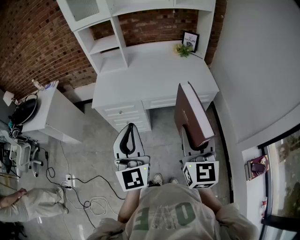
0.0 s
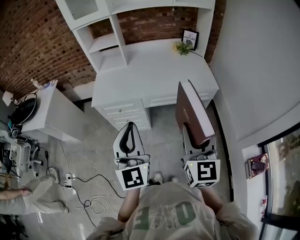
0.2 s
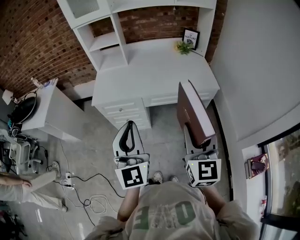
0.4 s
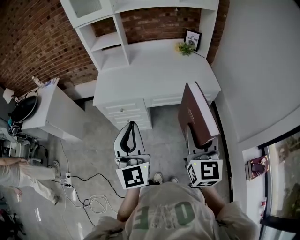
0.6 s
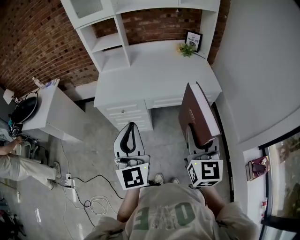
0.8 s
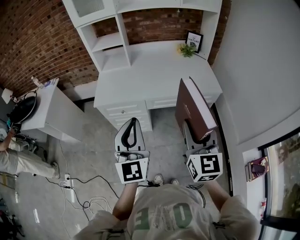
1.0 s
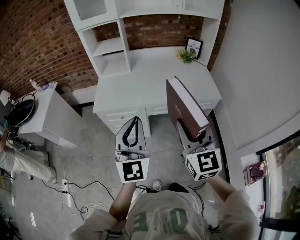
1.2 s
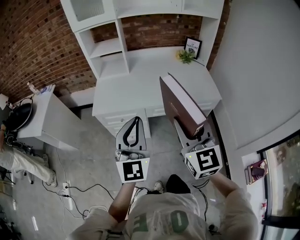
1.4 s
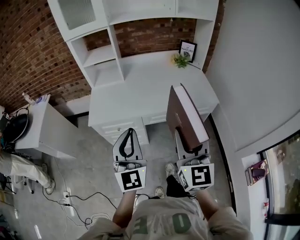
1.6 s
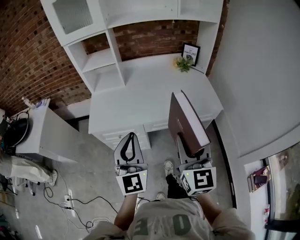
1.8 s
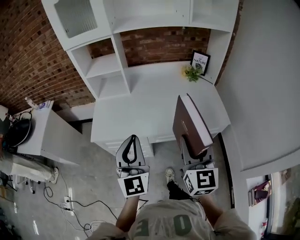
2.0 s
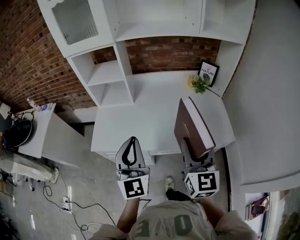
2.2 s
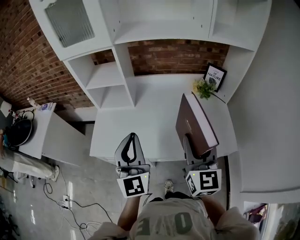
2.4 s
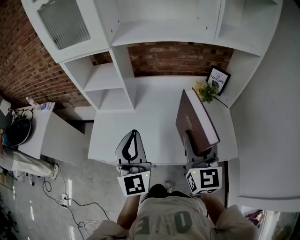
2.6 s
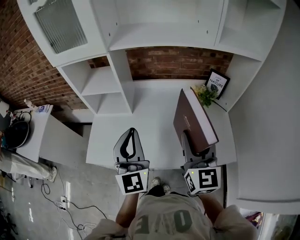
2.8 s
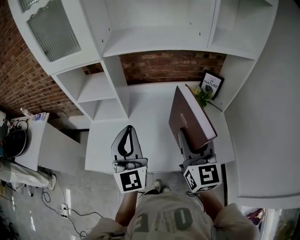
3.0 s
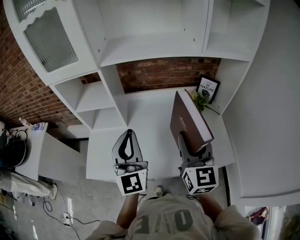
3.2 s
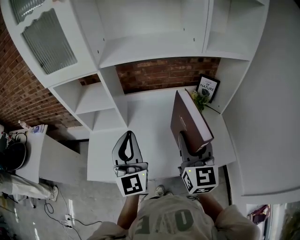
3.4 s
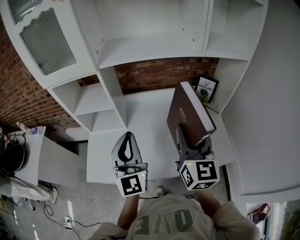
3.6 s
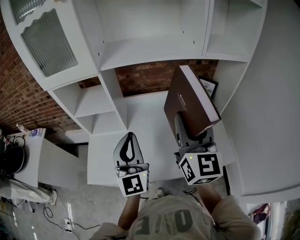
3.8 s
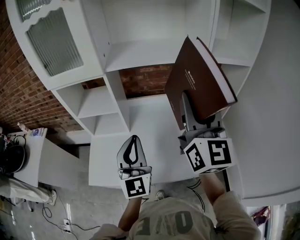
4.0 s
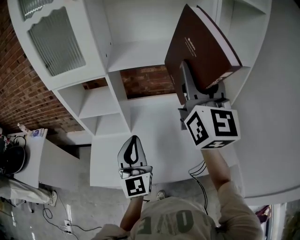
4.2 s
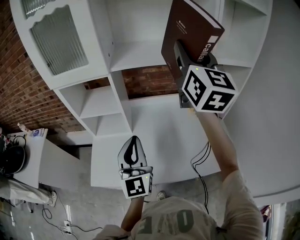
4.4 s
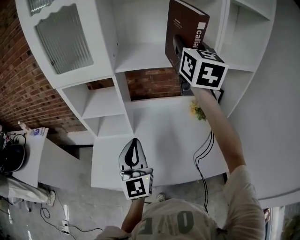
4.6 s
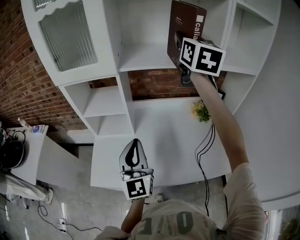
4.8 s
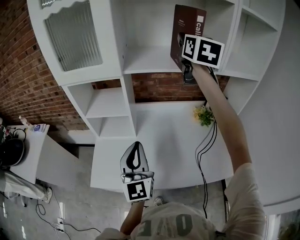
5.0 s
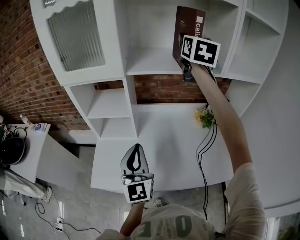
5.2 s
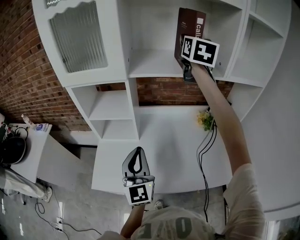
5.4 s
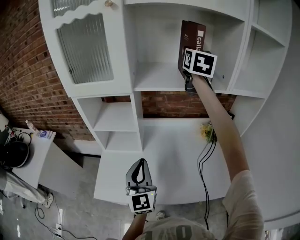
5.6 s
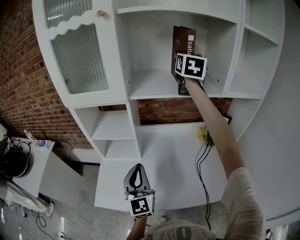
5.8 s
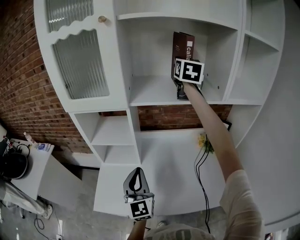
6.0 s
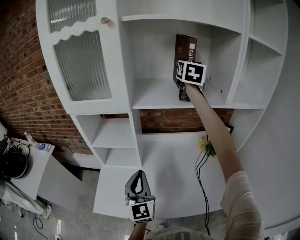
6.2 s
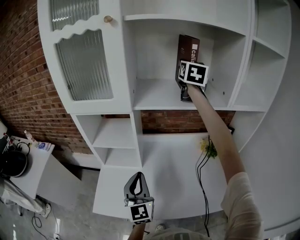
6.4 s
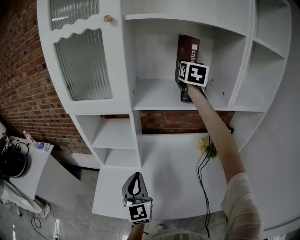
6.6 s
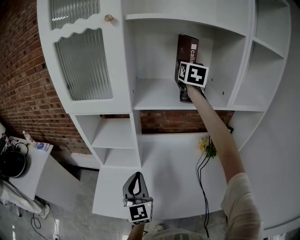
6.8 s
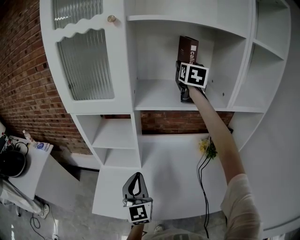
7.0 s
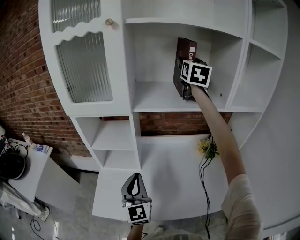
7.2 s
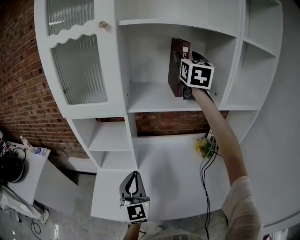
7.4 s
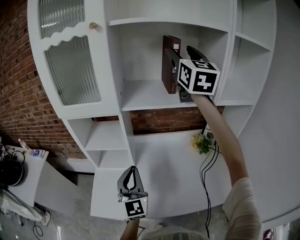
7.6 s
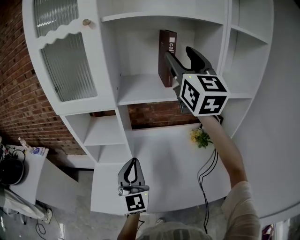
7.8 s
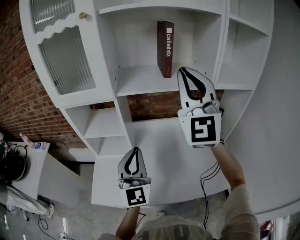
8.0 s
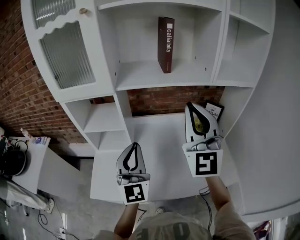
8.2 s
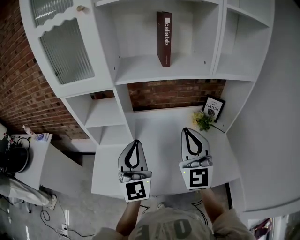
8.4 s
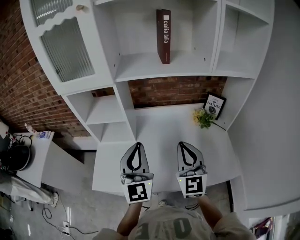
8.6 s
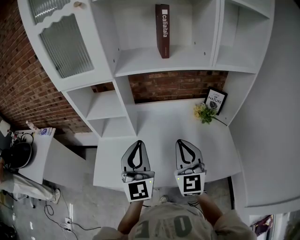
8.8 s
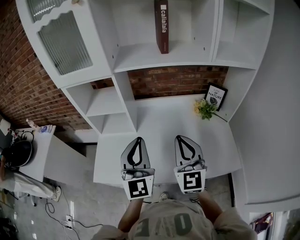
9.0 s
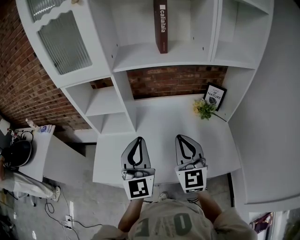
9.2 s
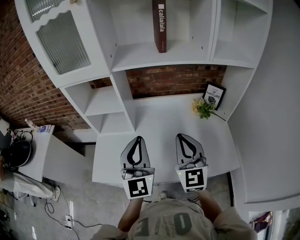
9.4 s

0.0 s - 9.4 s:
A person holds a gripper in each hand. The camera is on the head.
0.0 s - 1.6 s: The left gripper travels forward by about 10 cm; the right gripper moves forward and to the left, about 10 cm.
1.6 s - 3.2 s: The grippers both shift forward by some 35 cm.
3.2 s - 4.8 s: The left gripper moves to the left, some 5 cm. The right gripper goes some 35 cm forward and upward.
4.8 s - 6.2 s: The right gripper moves forward, some 15 cm. The left gripper changes place by approximately 5 cm.
6.2 s - 7.8 s: The right gripper shifts roughly 20 cm backward, changes its angle by approximately 30 degrees, and opens its fingers, while the left gripper travels upward by about 5 cm.
7.8 s - 9.4 s: The left gripper shifts approximately 5 cm backward. Meanwhile the right gripper moves downward and backward, approximately 40 cm, changes its angle by approximately 20 degrees, and closes.

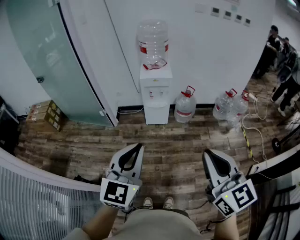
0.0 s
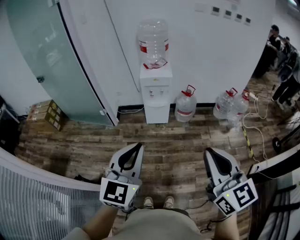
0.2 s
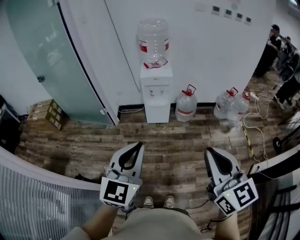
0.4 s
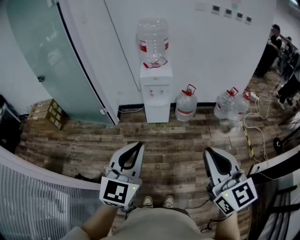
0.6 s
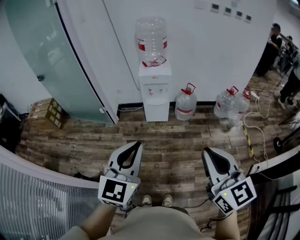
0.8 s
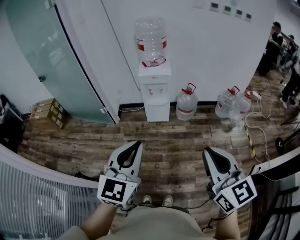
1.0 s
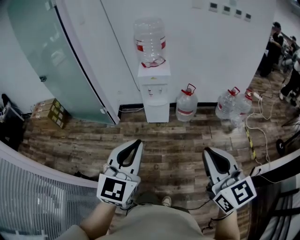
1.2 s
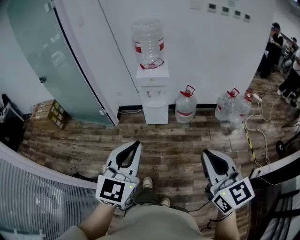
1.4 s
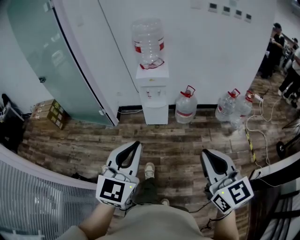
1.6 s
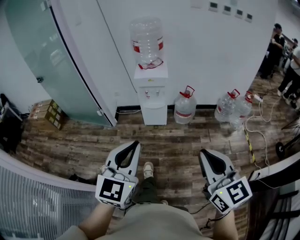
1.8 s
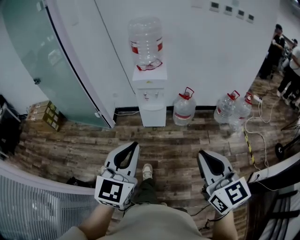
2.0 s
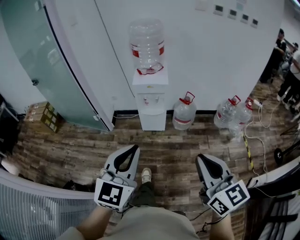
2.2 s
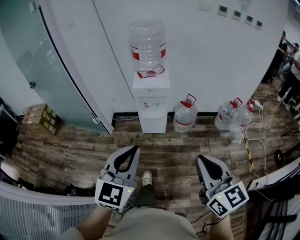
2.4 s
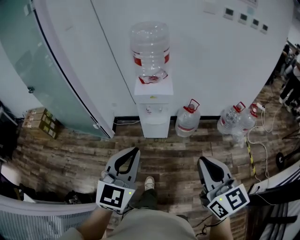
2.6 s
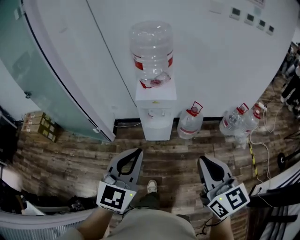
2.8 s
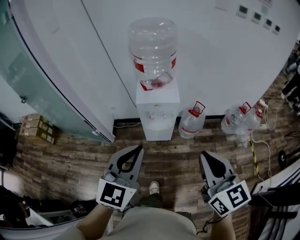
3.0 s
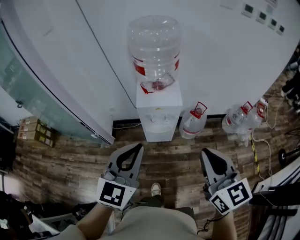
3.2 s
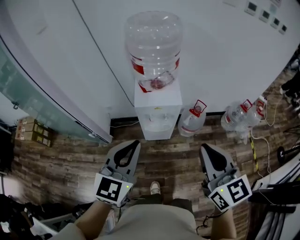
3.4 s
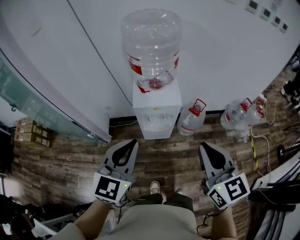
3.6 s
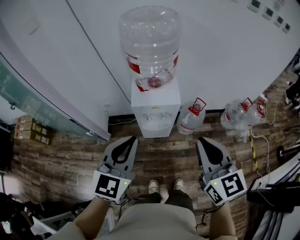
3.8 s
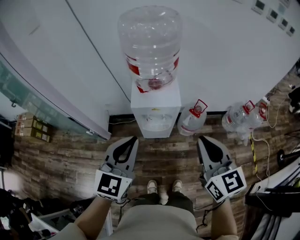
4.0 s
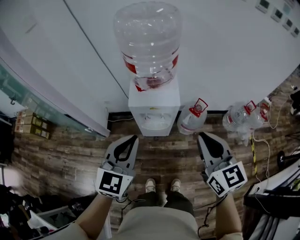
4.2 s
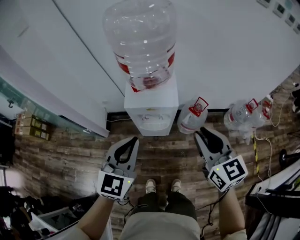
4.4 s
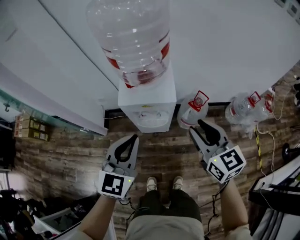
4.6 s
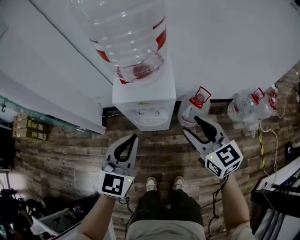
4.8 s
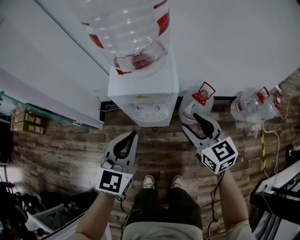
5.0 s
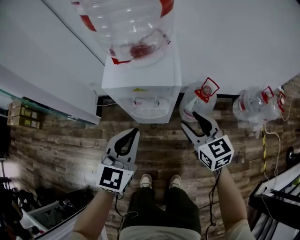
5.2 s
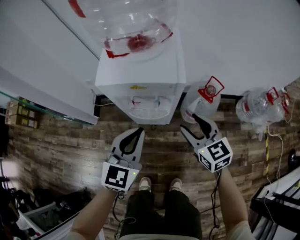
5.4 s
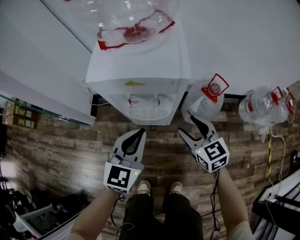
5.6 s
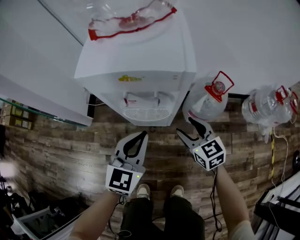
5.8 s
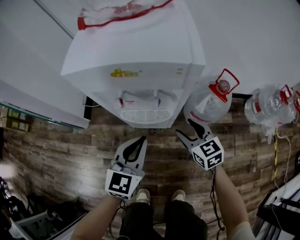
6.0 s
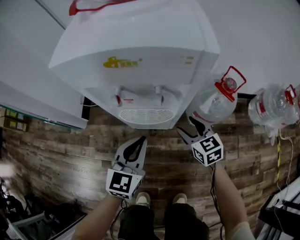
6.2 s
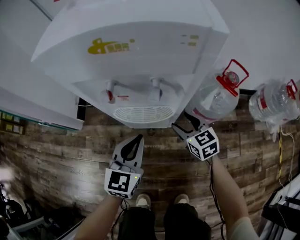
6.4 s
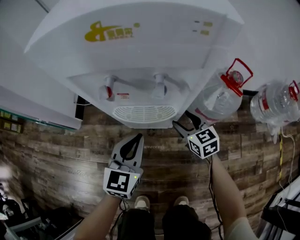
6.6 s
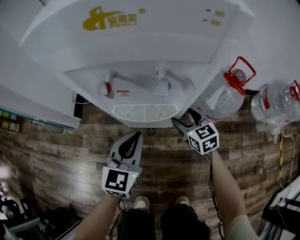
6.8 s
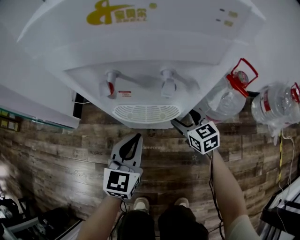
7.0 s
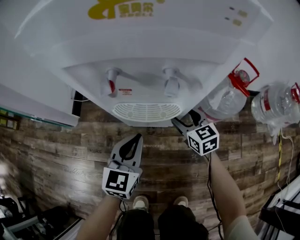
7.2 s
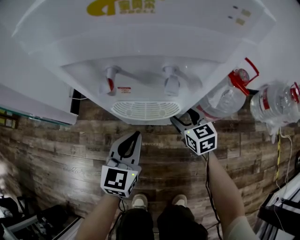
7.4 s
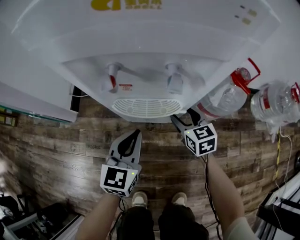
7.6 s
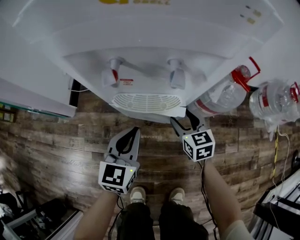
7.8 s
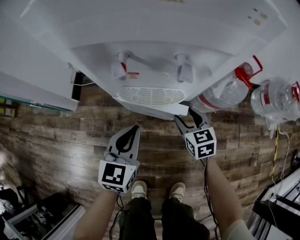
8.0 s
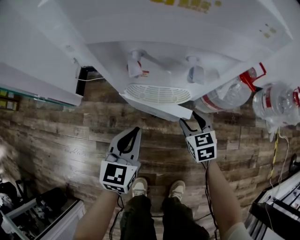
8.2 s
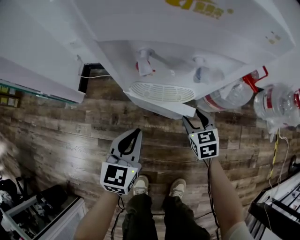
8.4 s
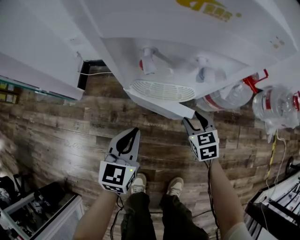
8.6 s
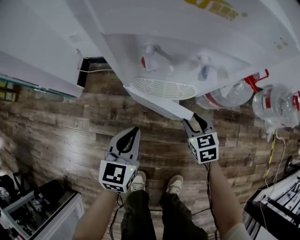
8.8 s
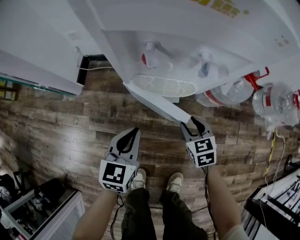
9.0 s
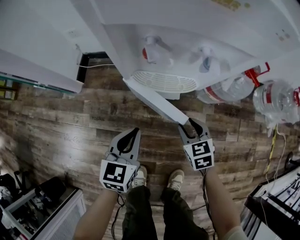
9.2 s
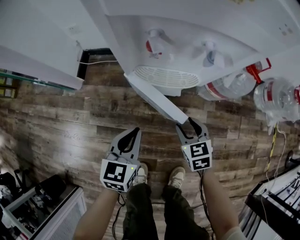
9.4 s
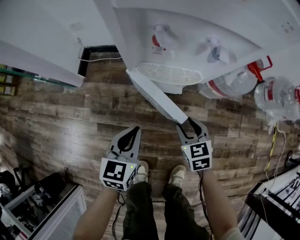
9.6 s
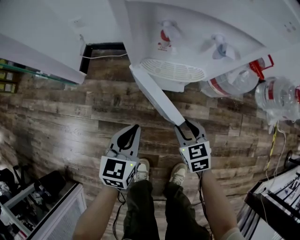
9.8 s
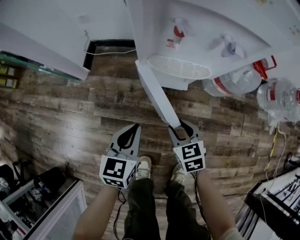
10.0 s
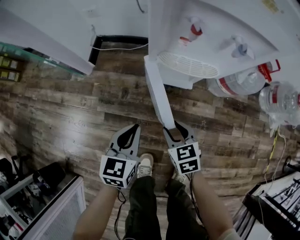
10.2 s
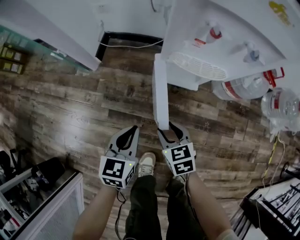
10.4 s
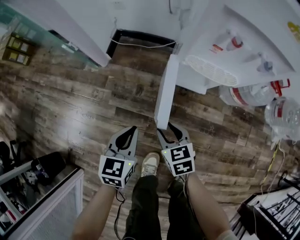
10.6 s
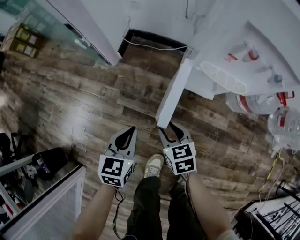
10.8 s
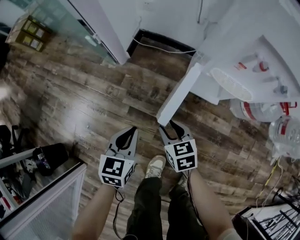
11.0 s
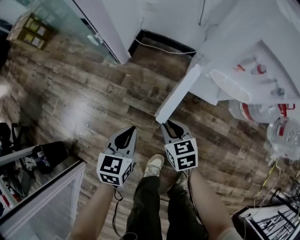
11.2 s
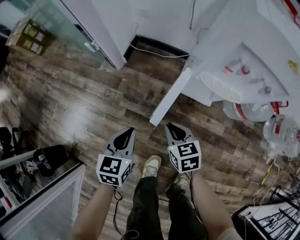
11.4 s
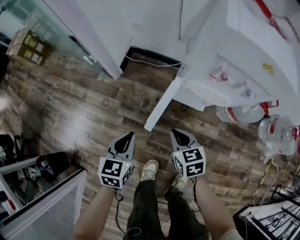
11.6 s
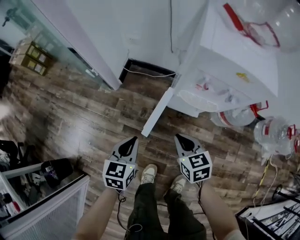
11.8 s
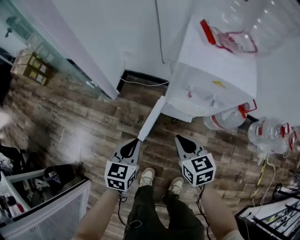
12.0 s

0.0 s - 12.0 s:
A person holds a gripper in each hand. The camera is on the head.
0.0 s - 1.6 s: Both grippers move to the right, some 10 cm.
1.6 s - 3.0 s: The two grippers go roughly 35 cm forward.
3.0 s - 4.4 s: Both grippers move forward and downward, roughly 20 cm.
4.4 s - 6.0 s: The two grippers go roughly 50 cm downward. The right gripper opens up.
6.0 s - 7.6 s: The left gripper travels downward by some 15 cm. The right gripper moves downward and forward, roughly 15 cm.
7.6 s - 9.0 s: The right gripper moves backward, roughly 10 cm, while the left gripper is displaced backward and to the left by roughly 10 cm.
9.0 s - 10.4 s: The left gripper moves to the left and backward, roughly 15 cm. Meanwhile the right gripper moves to the left and backward, roughly 25 cm.
10.4 s - 12.0 s: The two grippers go roughly 25 cm upward. The right gripper closes its fingers.

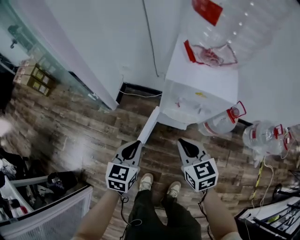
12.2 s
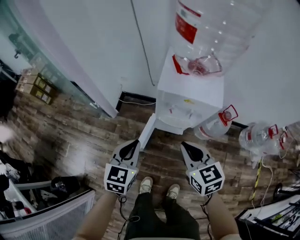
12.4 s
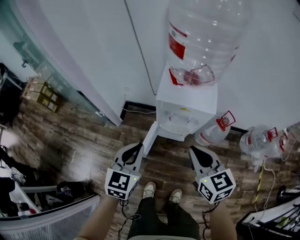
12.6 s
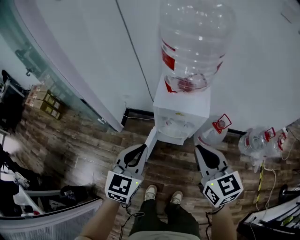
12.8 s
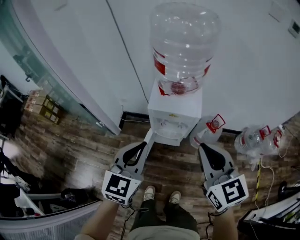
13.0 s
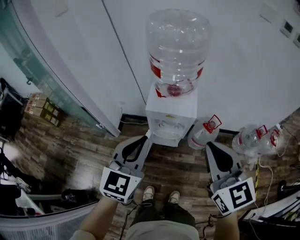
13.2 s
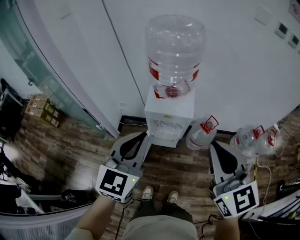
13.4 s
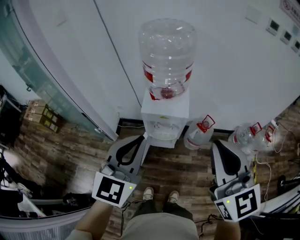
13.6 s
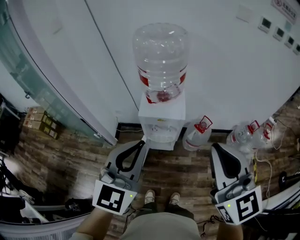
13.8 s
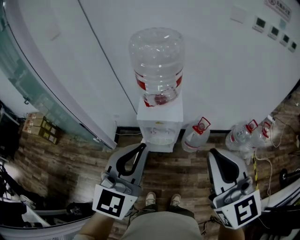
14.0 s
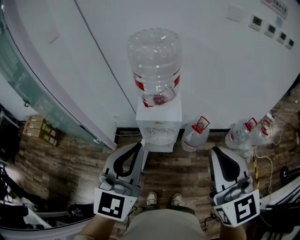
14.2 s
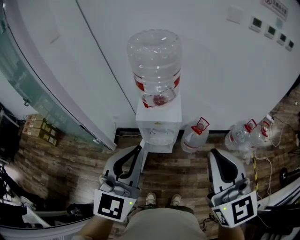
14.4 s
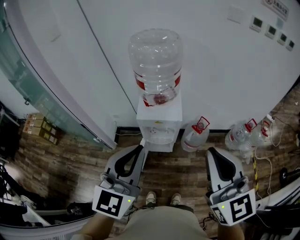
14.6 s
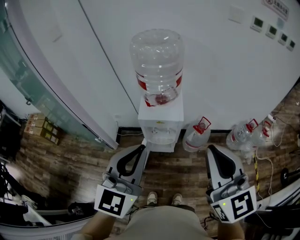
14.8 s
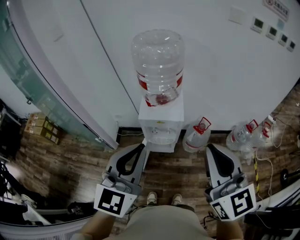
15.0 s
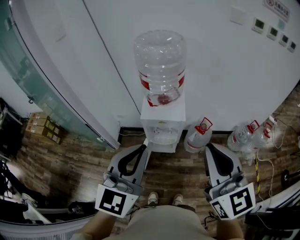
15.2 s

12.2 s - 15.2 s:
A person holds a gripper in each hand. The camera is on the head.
12.2 s - 13.8 s: The two grippers go roughly 50 cm upward. The right gripper points its fingers roughly 30 degrees further upward, while the left gripper swivels about 40 degrees.
13.8 s - 15.2 s: The grippers stay close to where they were, moving slightly.
